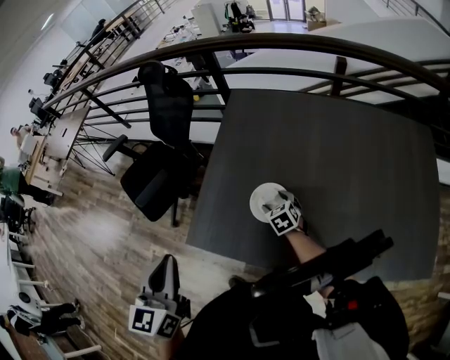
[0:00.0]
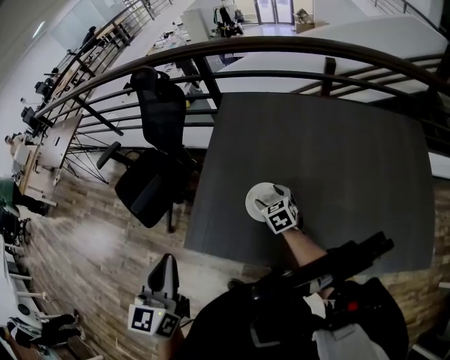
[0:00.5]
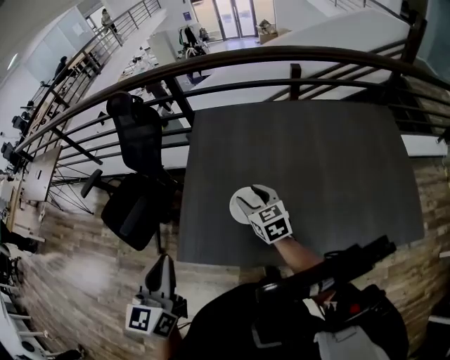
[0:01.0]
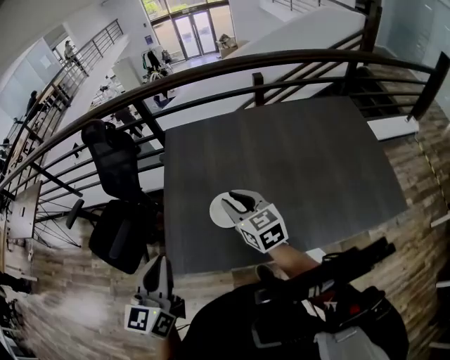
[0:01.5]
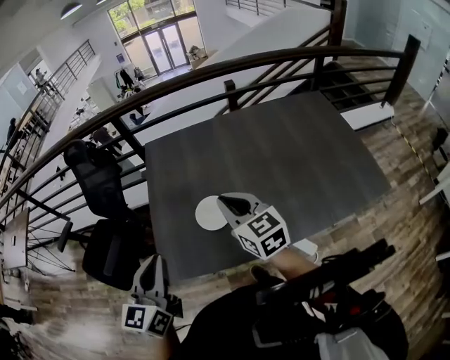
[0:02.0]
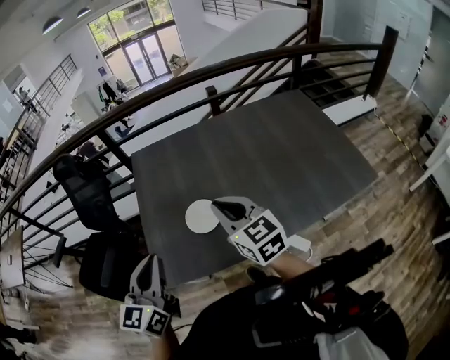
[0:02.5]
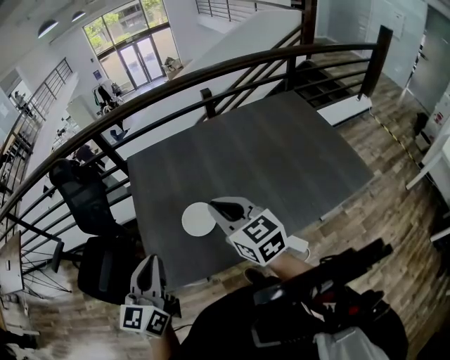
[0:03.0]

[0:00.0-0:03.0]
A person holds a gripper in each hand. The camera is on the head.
0:00.0 to 0:01.5: The right gripper heads upward, covering roughly 25 cm, angles its fingers upward, by some 30 degrees, and closes; the left gripper swivels some 20 degrees.
0:01.5 to 0:03.0: The right gripper moves upward, backward and to the right, some 10 cm.

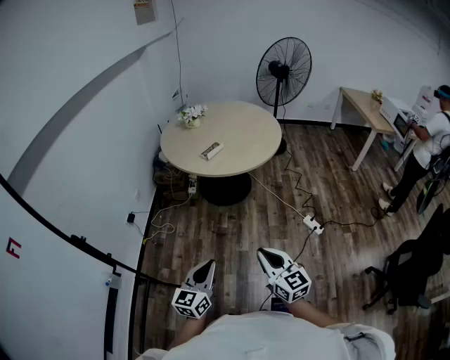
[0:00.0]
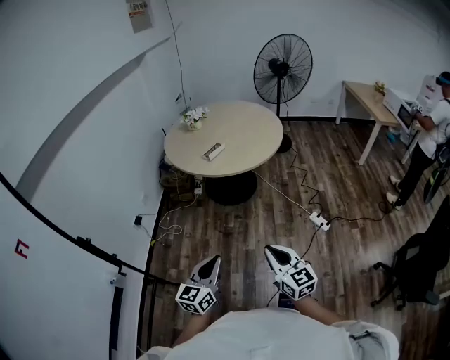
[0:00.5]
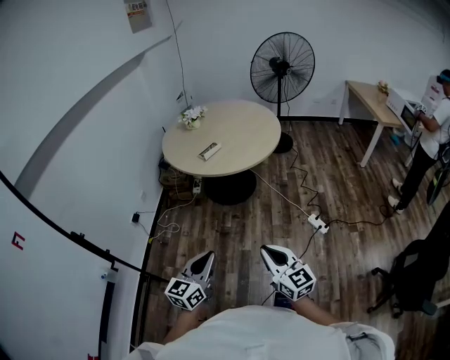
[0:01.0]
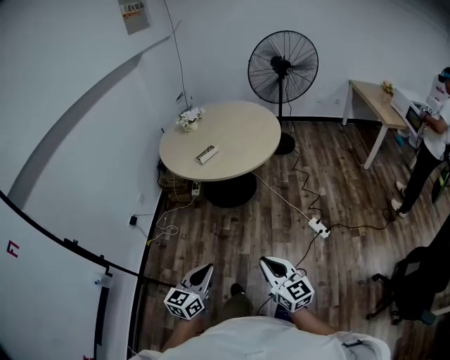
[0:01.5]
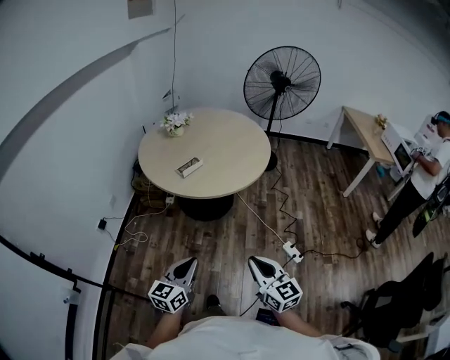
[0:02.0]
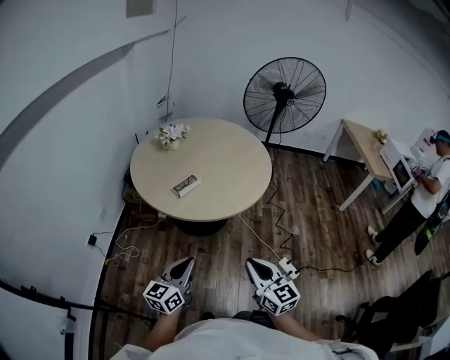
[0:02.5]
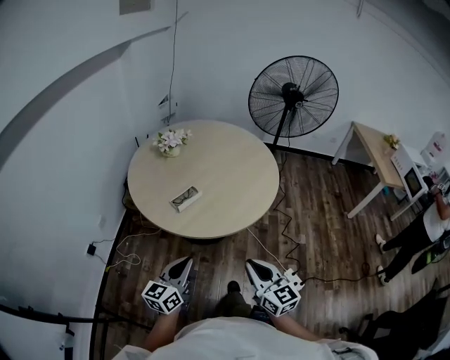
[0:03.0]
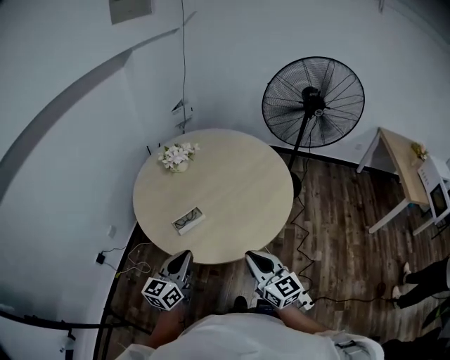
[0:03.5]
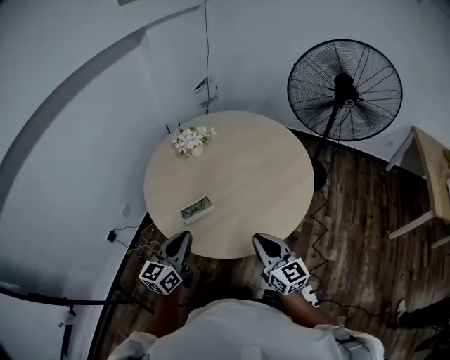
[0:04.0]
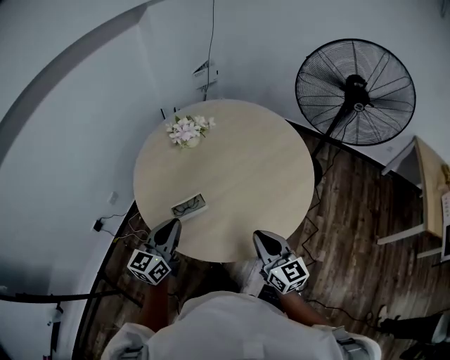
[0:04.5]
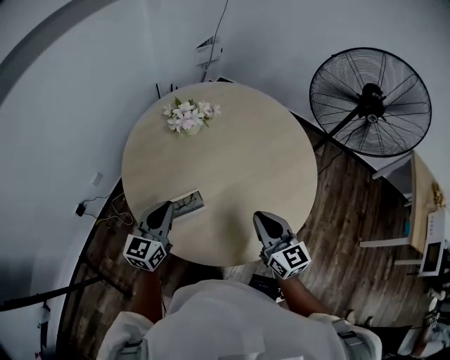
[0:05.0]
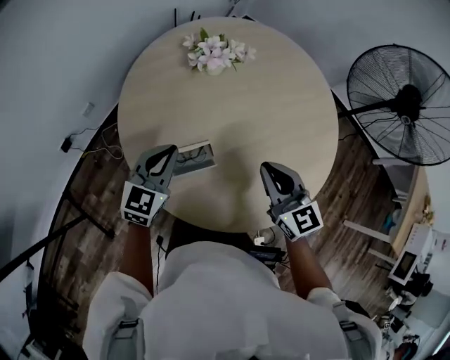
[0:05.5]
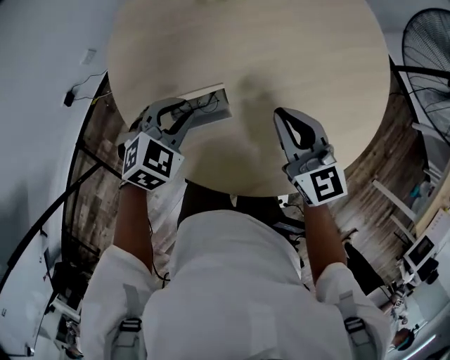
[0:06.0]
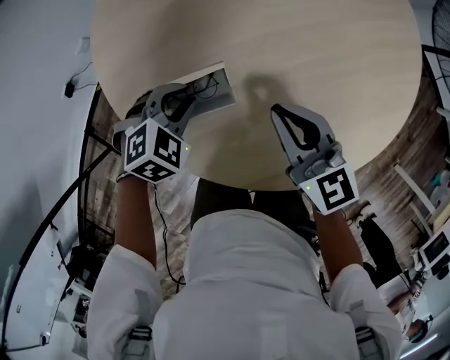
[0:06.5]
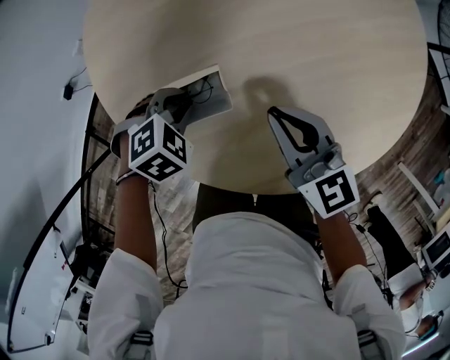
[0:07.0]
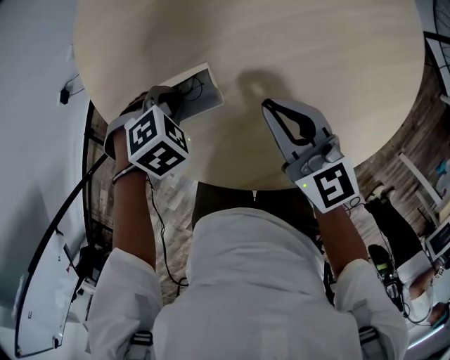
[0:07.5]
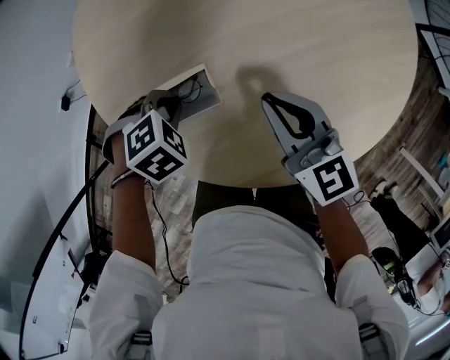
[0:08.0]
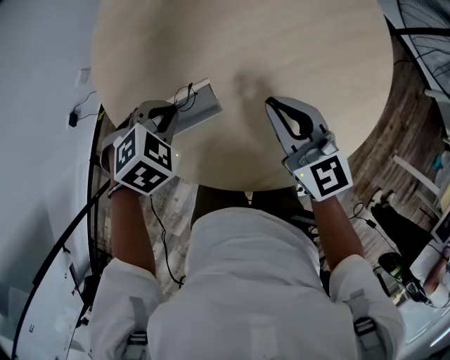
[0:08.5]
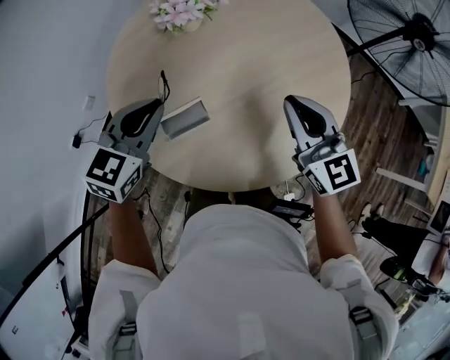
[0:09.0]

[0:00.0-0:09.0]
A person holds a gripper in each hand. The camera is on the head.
0:00.0 to 0:02.0: Both grippers travel together forward and to the right, approximately 20 cm.
0:02.0 to 0:04.5: The pair of grippers is taken forward, approximately 60 cm. The left gripper swivels roughly 20 degrees.
0:04.5 to 0:07.0: The left gripper moves downward, some 35 cm, and angles its fingers downward, by roughly 70 degrees. The right gripper ends up roughly 30 cm from where it was, and turns by about 30 degrees.
0:07.0 to 0:09.0: Both grippers move upward, about 25 cm. The right gripper turns by approximately 30 degrees. Meanwhile the left gripper tilts its fingers approximately 50 degrees upward.

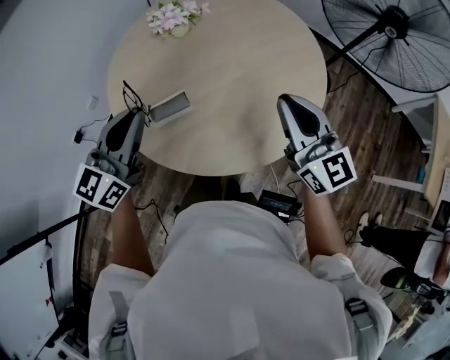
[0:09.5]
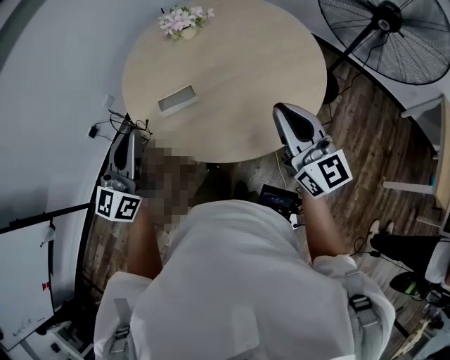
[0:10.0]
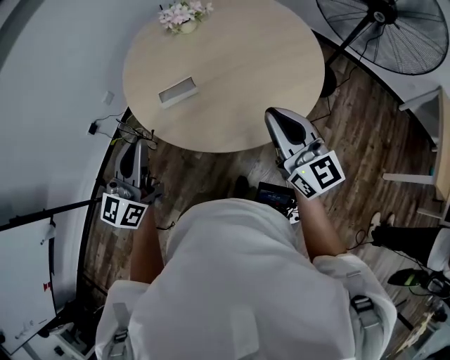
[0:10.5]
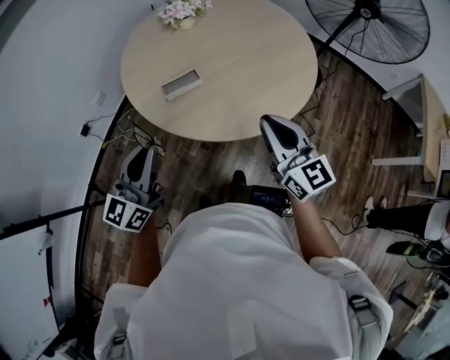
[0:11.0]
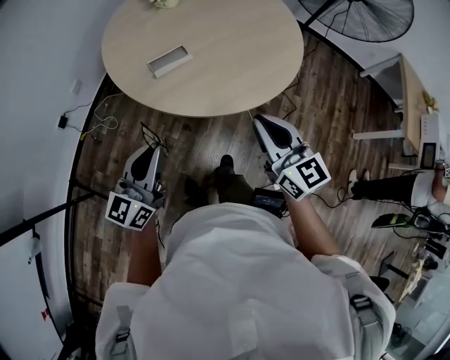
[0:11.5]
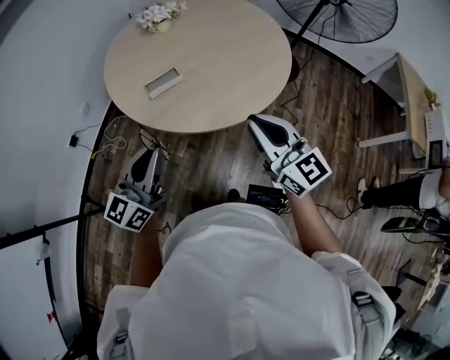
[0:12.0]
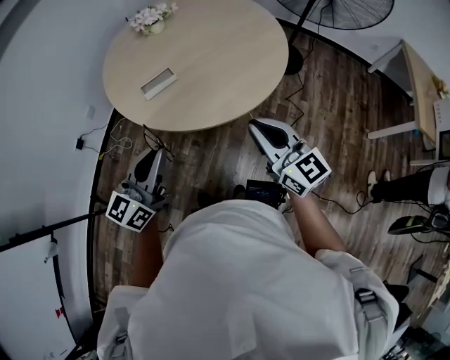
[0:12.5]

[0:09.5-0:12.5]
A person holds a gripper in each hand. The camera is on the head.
0:09.5 to 0:11.0: The left gripper goes some 20 cm backward; the right gripper moves backward and to the left, approximately 20 cm.
0:11.0 to 0:12.5: The left gripper heads to the right and backward, covering some 10 cm, while the right gripper is displaced backward and to the right by approximately 10 cm.

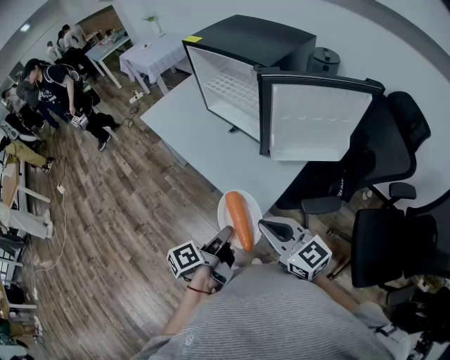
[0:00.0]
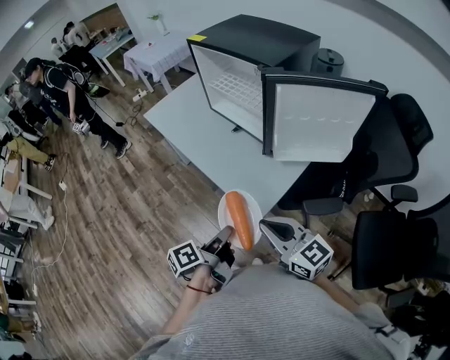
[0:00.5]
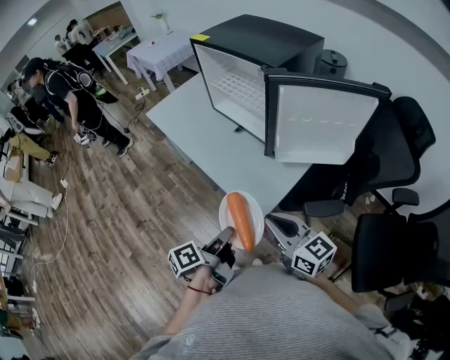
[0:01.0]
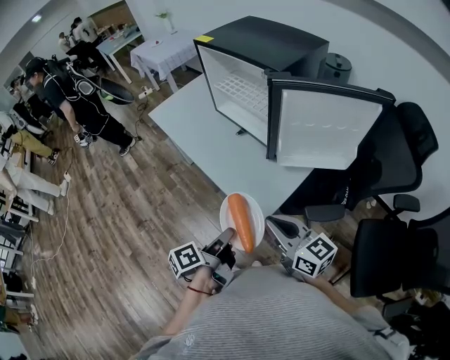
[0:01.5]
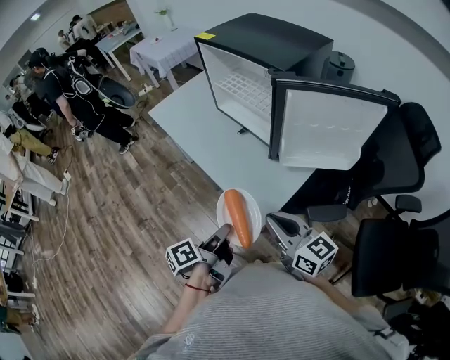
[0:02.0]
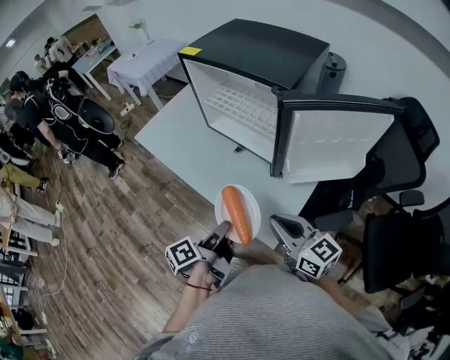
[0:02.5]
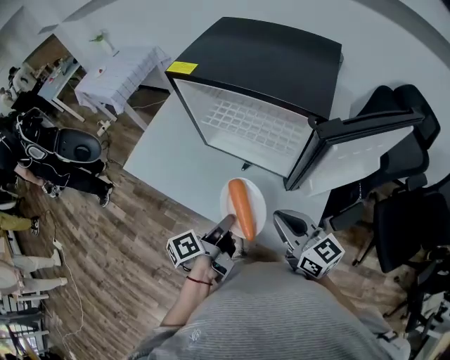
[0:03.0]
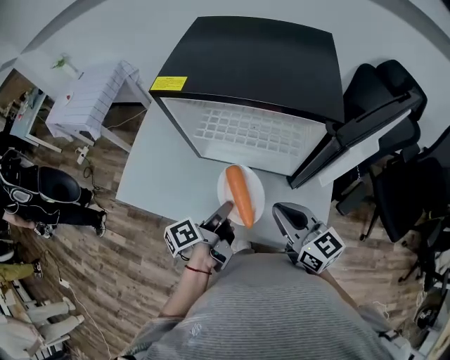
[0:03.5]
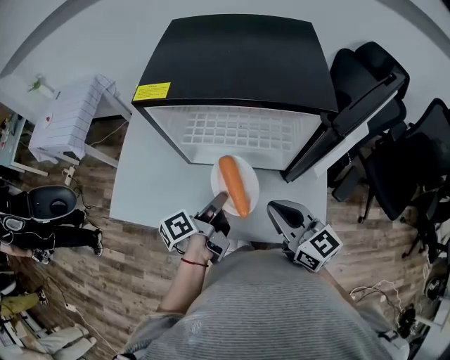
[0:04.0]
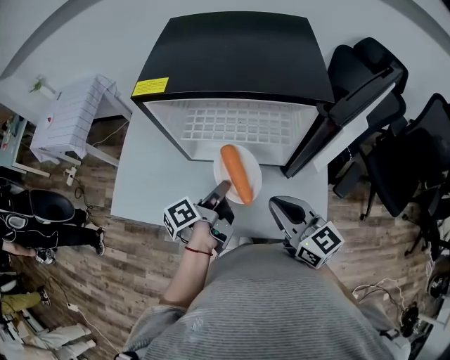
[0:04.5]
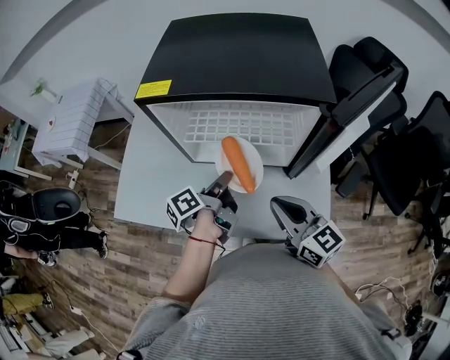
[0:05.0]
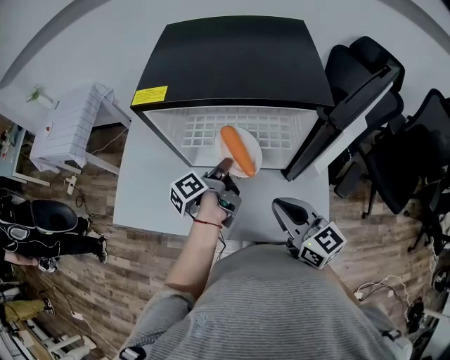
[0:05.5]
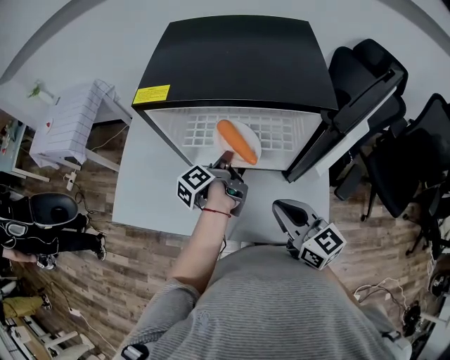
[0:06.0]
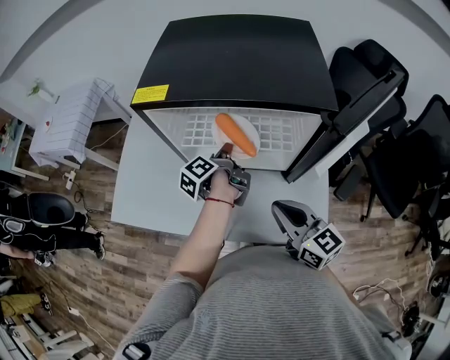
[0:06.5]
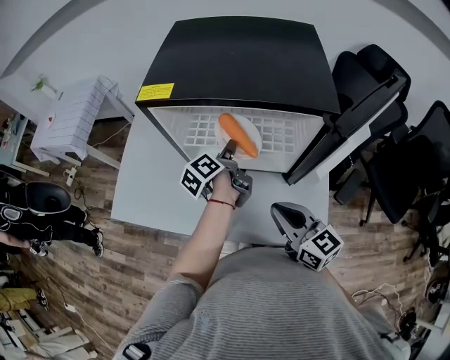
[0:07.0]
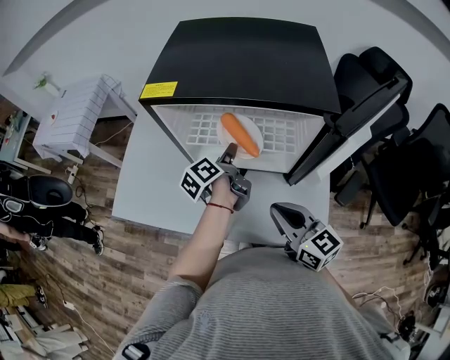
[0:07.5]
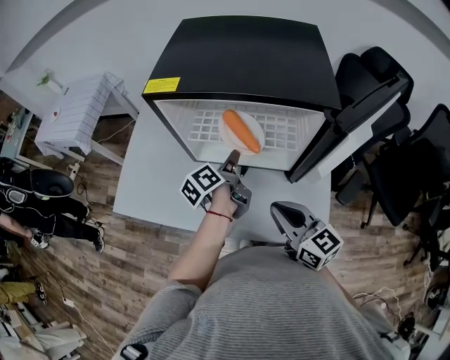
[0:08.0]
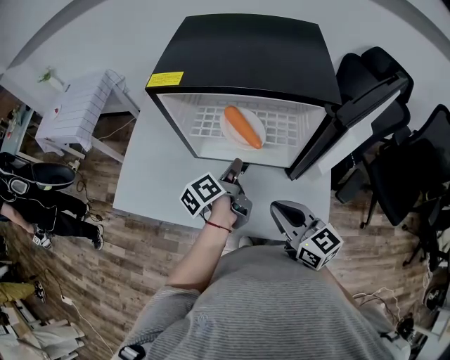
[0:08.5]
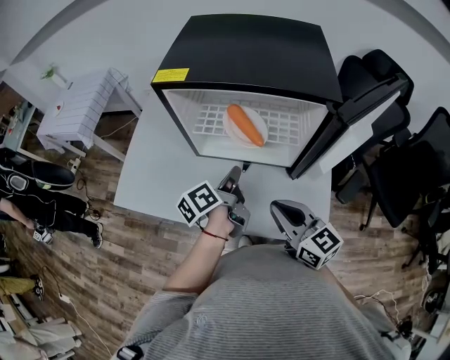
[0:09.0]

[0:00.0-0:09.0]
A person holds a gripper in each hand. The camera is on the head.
0:02.0 to 0:04.5: The right gripper changes place by about 30 cm, and rotates roughly 40 degrees.

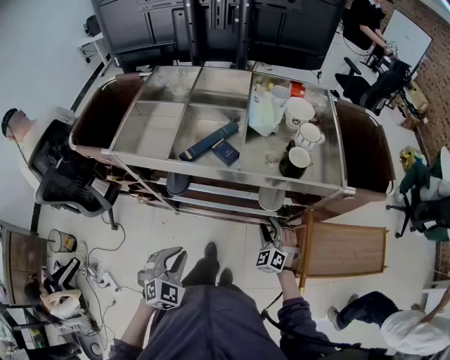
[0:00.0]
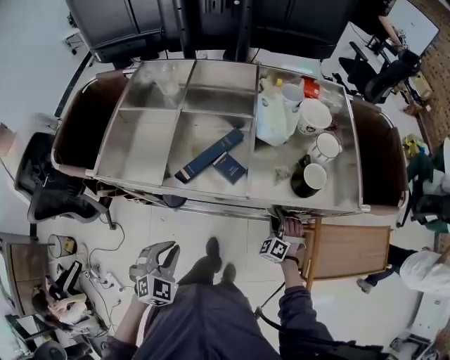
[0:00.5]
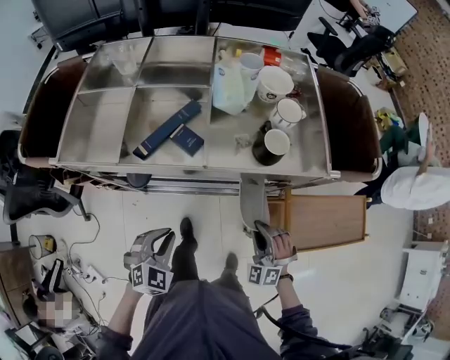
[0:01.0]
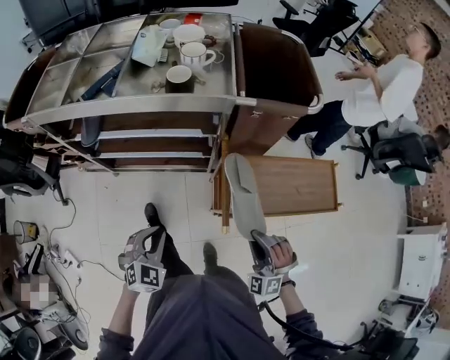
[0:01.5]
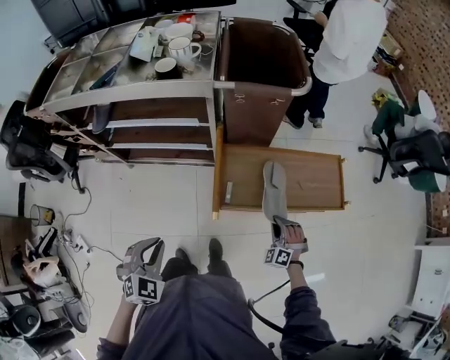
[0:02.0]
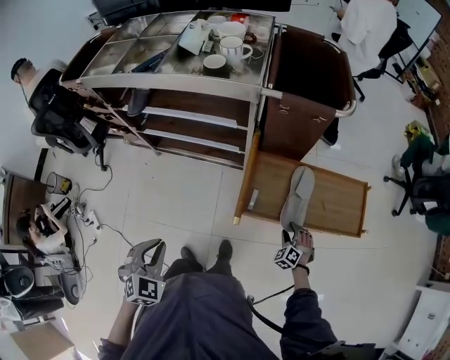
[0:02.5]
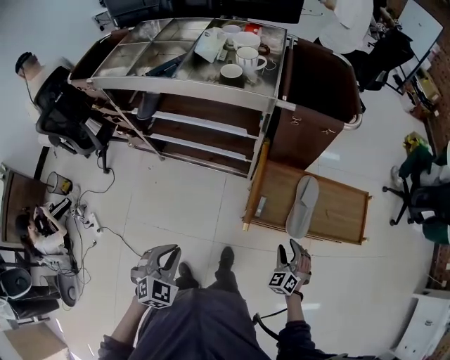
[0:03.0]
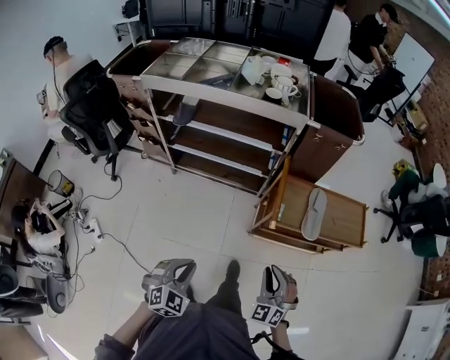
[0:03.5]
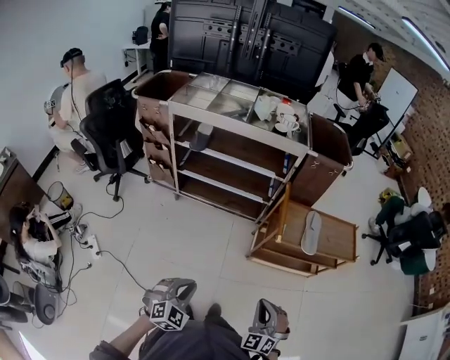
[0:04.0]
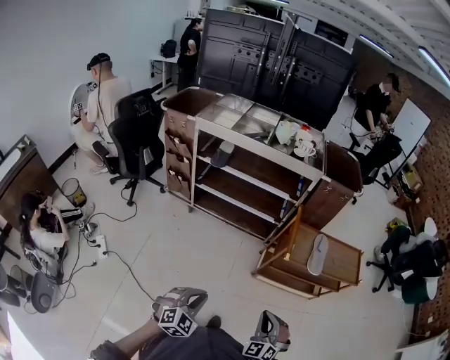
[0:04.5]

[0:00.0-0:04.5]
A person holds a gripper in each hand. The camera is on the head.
0:00.0 to 0:02.0: The grippers both shift to the right and backward by roughly 50 cm. The right gripper closes.
0:02.0 to 0:04.5: The right gripper travels backward, to the left and upward by some 50 cm, changes its angle by some 20 degrees, and opens, then closes once more, while the left gripper goes about 30 cm backward and to the left.
